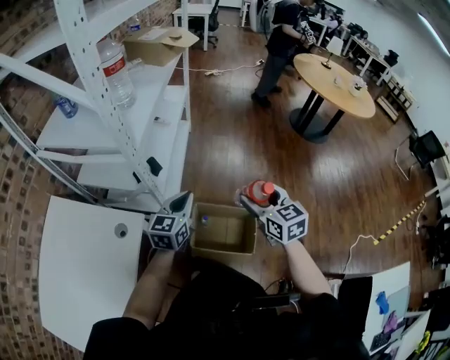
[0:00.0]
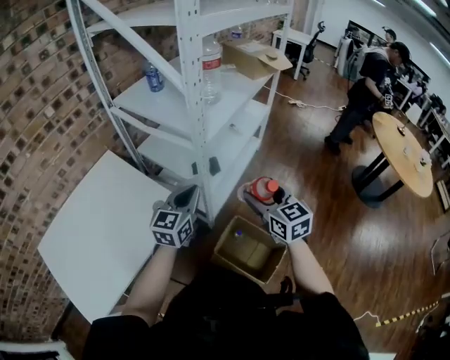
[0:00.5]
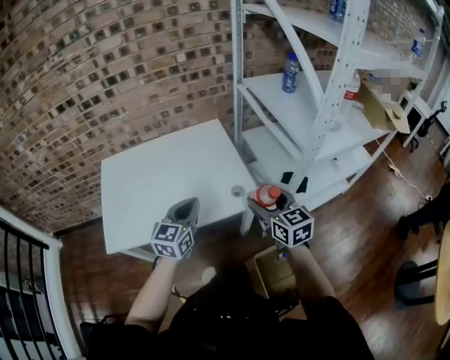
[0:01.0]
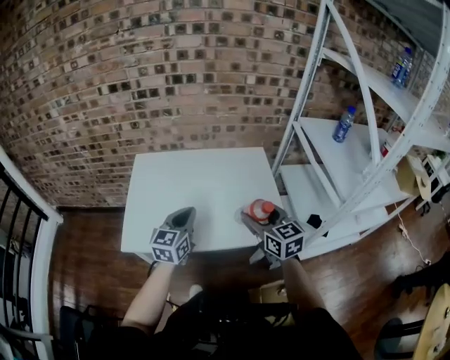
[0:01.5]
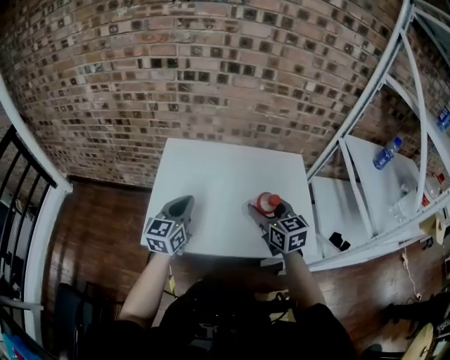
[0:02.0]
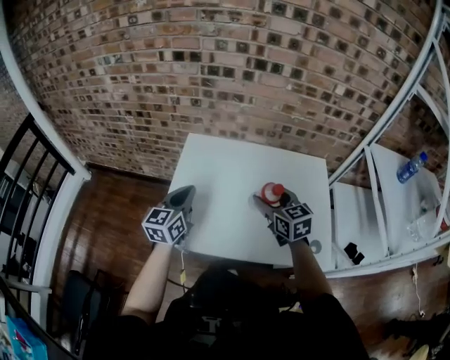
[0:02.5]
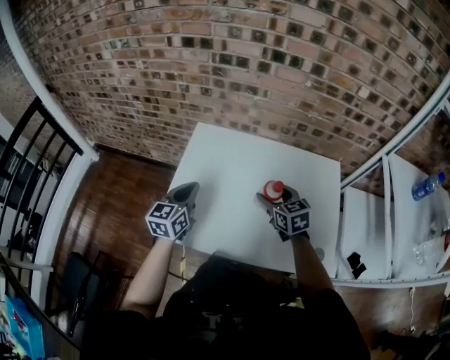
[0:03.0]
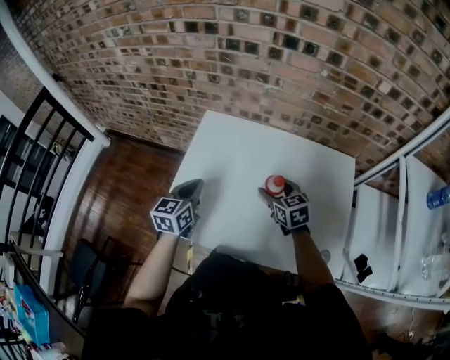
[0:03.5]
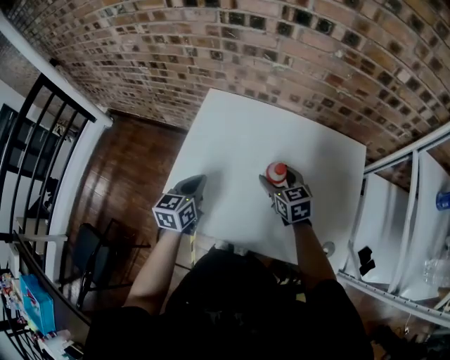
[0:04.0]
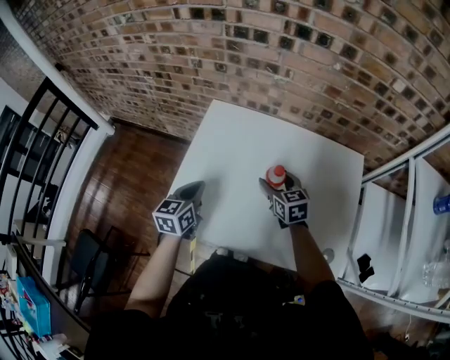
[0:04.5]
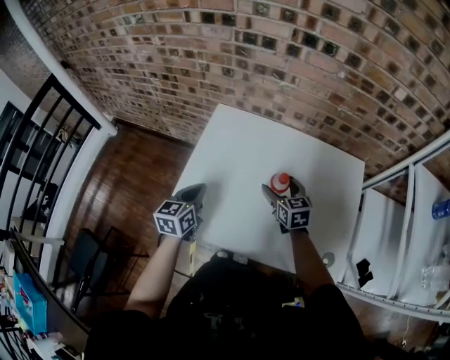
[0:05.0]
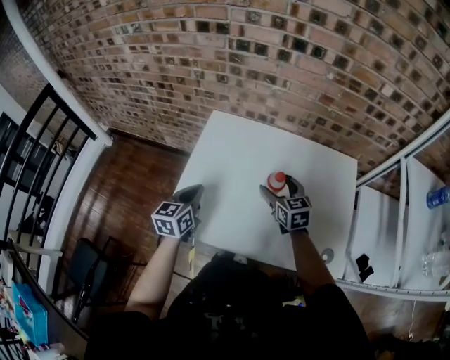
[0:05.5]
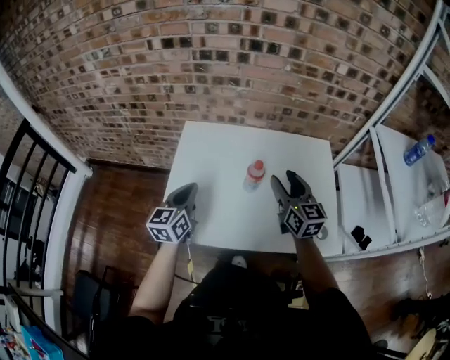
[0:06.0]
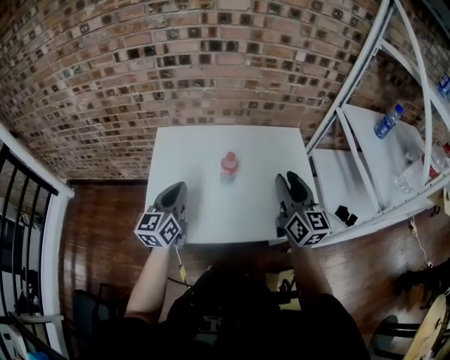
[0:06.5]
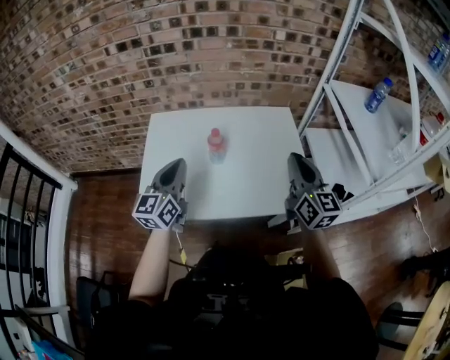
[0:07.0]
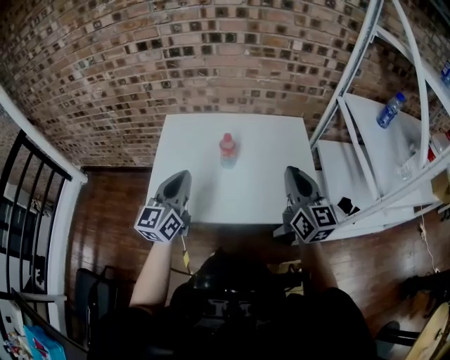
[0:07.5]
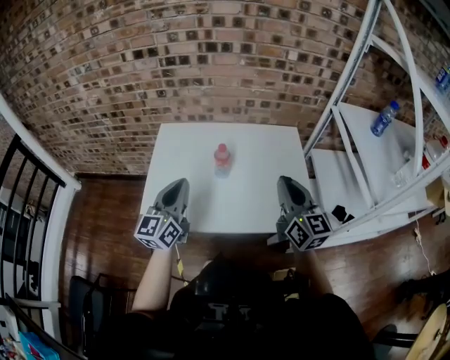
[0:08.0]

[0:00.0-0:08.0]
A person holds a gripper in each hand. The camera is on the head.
0:00.0 to 0:02.0: The two grippers travel together, some 70 cm. The left gripper swivels some 90 degrees. The right gripper turns by some 80 degrees.
0:02.0 to 0:04.0: The right gripper shifts roughly 20 cm downward and forward, and changes its angle by some 20 degrees; the left gripper moves downward and forward, approximately 15 cm, and turns by some 20 degrees.
0:04.0 to 0:06.0: The right gripper is displaced upward and backward by about 20 cm, and swivels approximately 30 degrees, while the left gripper moves upward, about 10 cm.
0:06.0 to 0:08.0: Both grippers move backward, to the right and upward, roughly 20 cm. The right gripper closes.

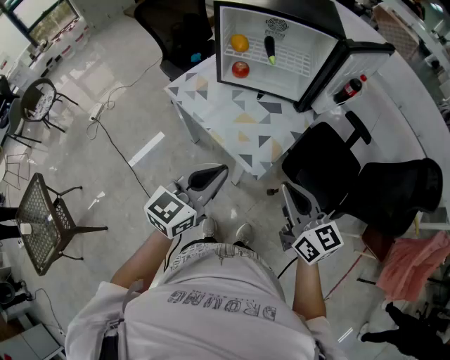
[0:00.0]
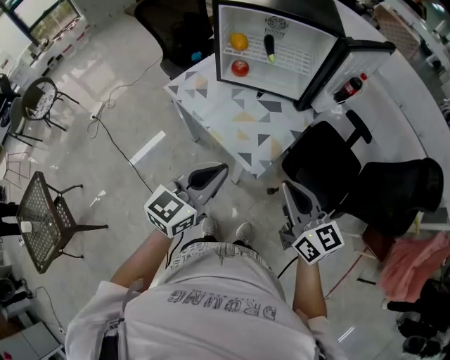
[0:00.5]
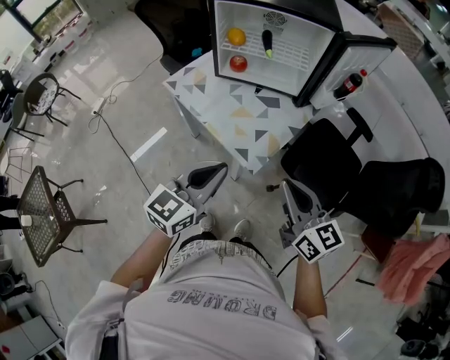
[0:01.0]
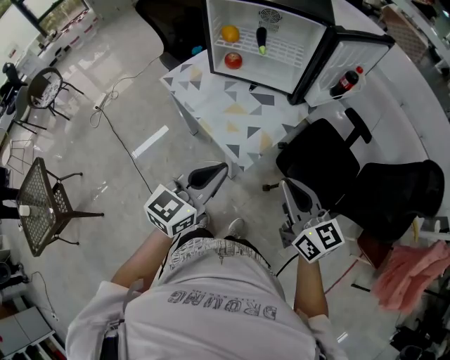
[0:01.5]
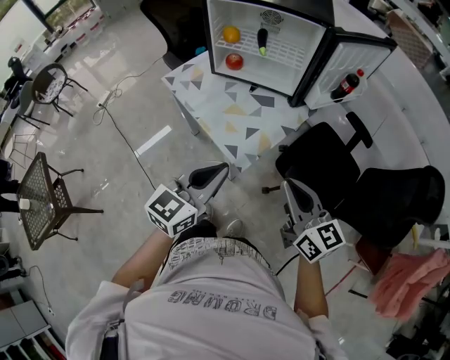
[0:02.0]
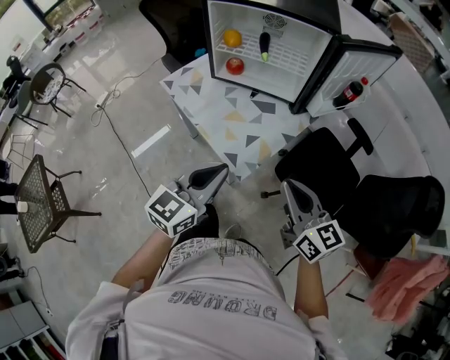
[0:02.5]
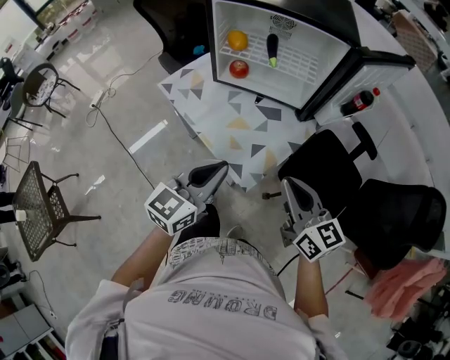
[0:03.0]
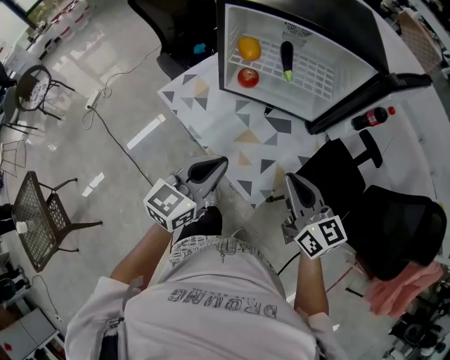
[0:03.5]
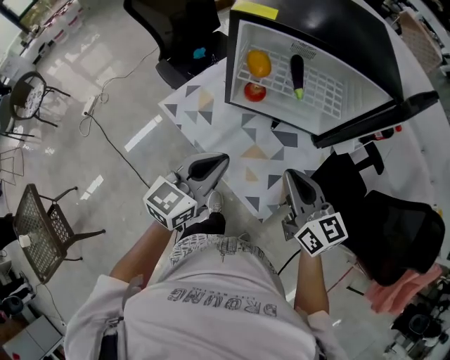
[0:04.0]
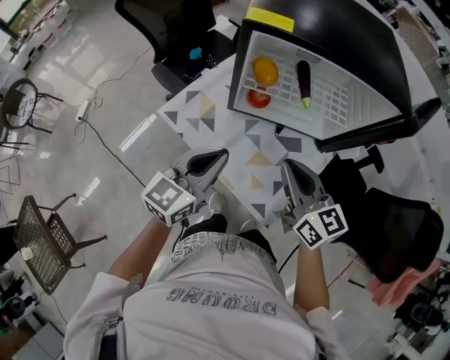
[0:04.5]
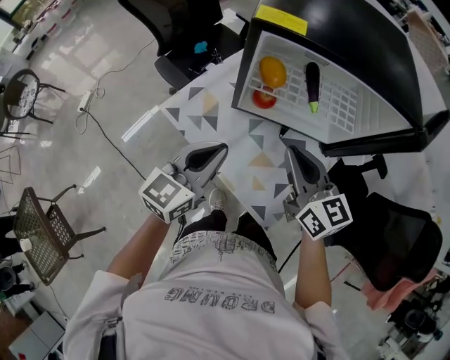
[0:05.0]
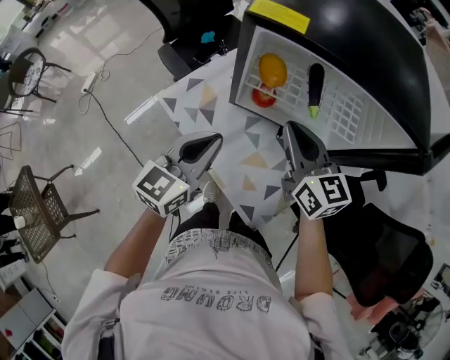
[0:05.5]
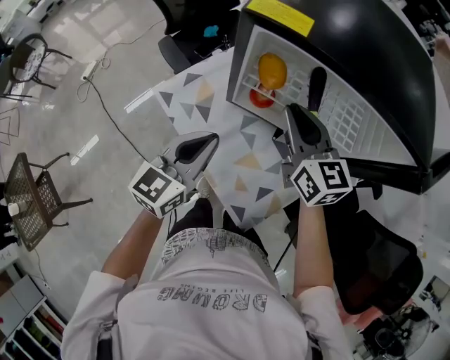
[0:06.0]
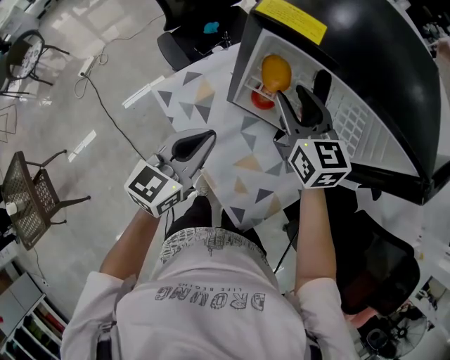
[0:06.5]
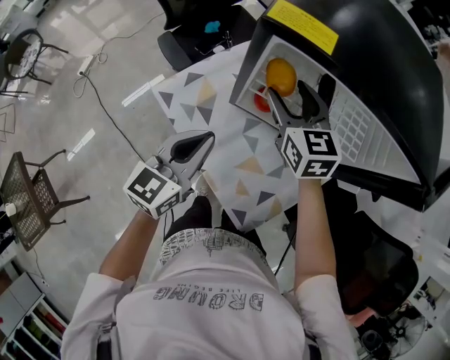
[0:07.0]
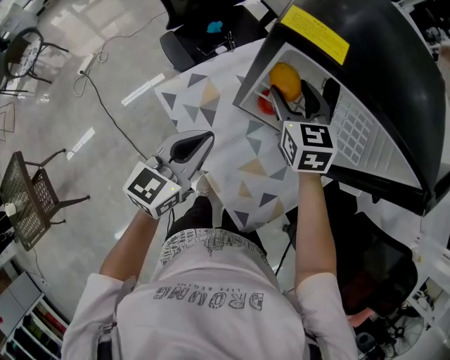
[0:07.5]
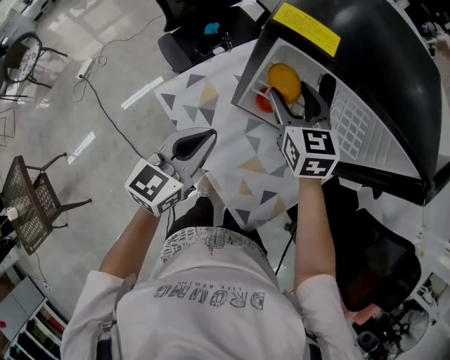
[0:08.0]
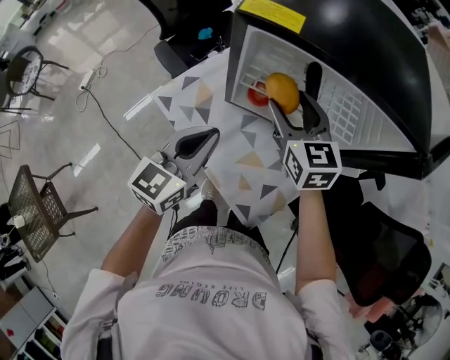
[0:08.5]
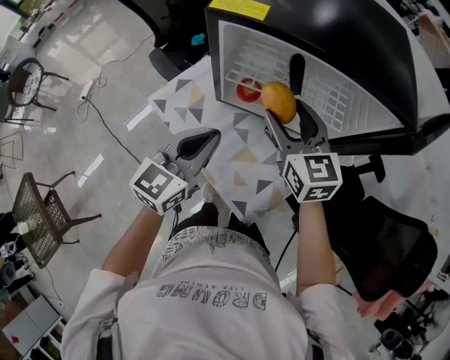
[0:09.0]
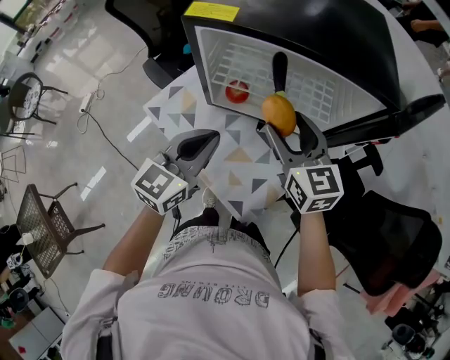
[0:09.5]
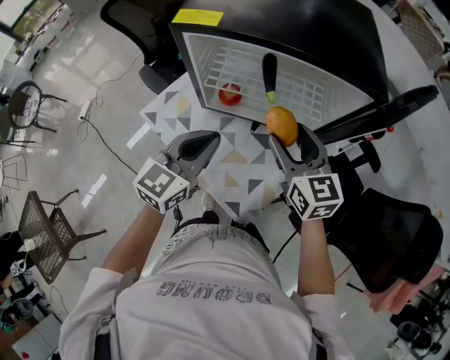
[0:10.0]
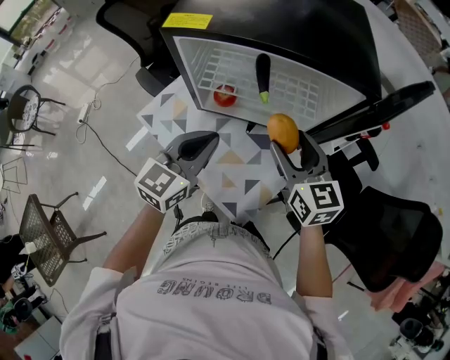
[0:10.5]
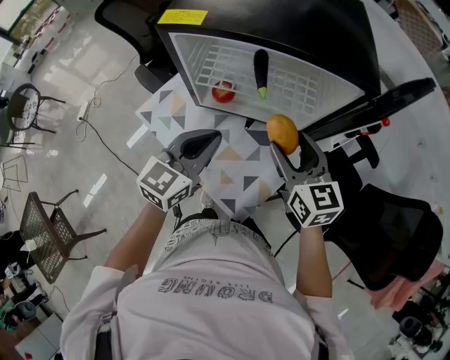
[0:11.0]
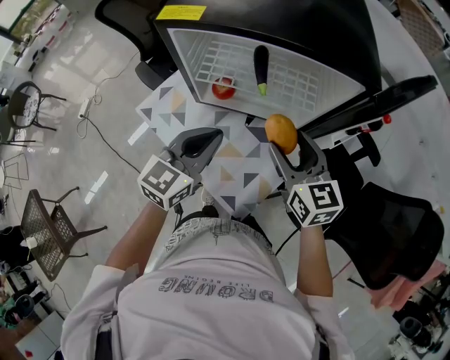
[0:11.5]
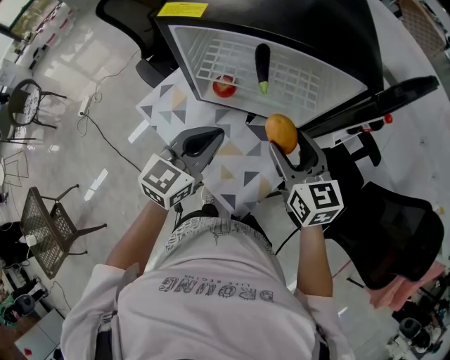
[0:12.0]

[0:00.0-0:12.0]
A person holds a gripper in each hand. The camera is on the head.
0:00.0 to 0:02.0: Both grippers travel together to the right, some 10 cm.
0:02.0 to 0:04.0: Both grippers move forward and to the left, some 30 cm.
0:04.0 to 0:06.0: The right gripper travels forward by roughly 20 cm. The left gripper shifts approximately 10 cm forward.
0:06.0 to 0:08.0: The right gripper heads forward, covering approximately 5 cm, and opens.
0:08.0 to 0:10.0: The left gripper shifts roughly 15 cm to the right and upward; the right gripper travels to the right and backward by some 20 cm.
0:10.0 to 0:12.0: The grippers stay close to where they were, moving slightly.

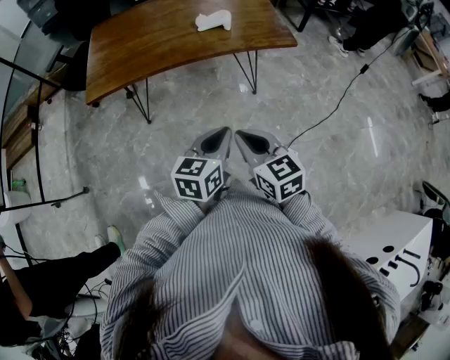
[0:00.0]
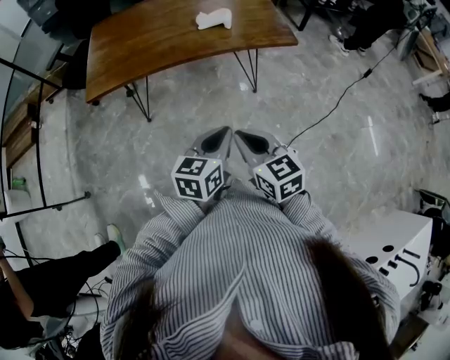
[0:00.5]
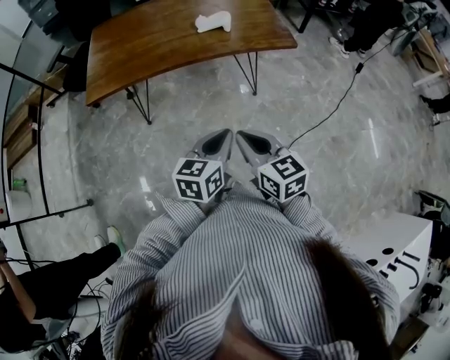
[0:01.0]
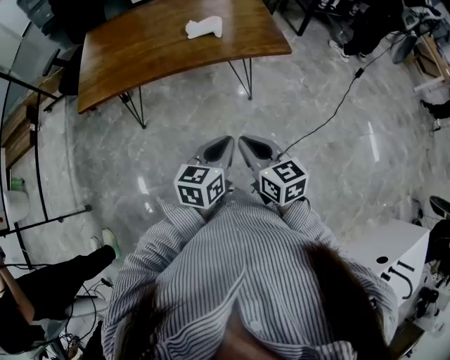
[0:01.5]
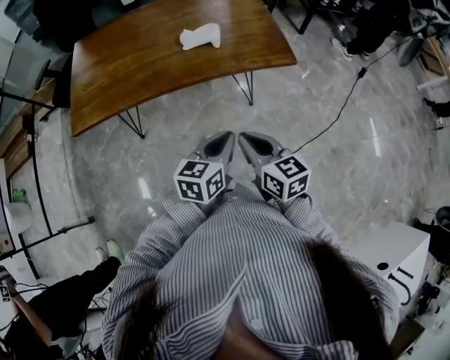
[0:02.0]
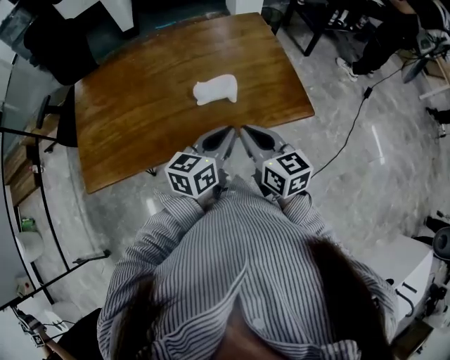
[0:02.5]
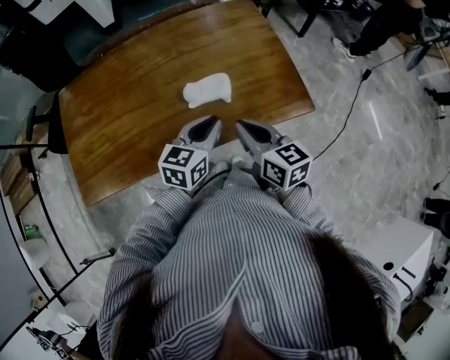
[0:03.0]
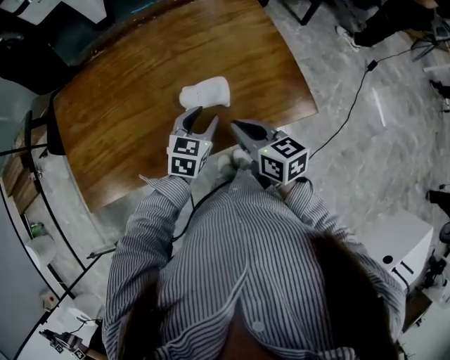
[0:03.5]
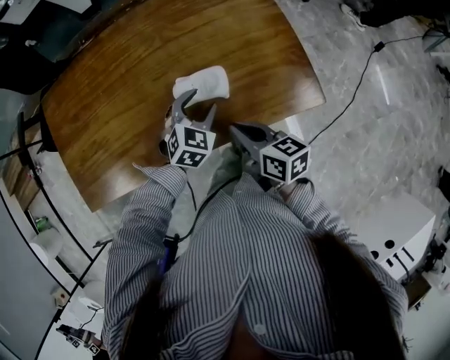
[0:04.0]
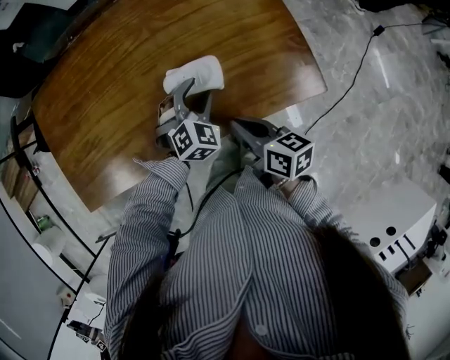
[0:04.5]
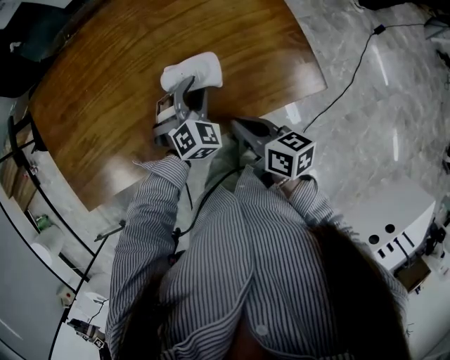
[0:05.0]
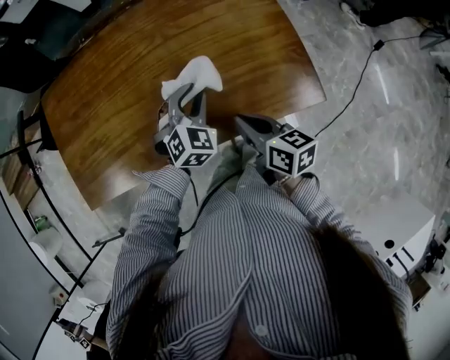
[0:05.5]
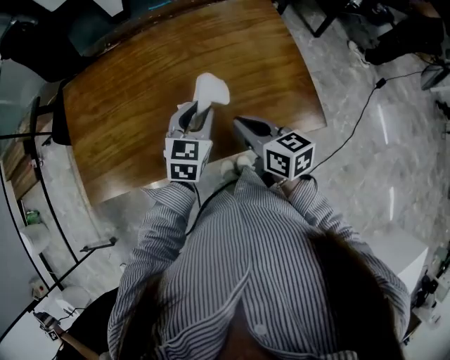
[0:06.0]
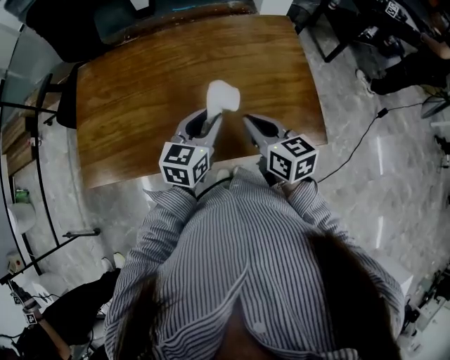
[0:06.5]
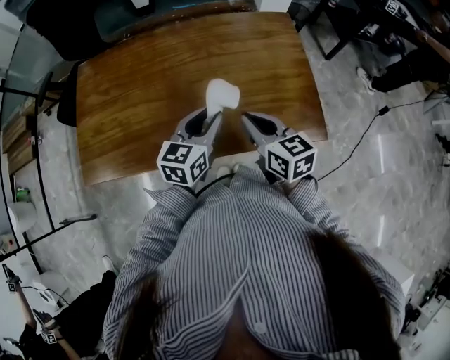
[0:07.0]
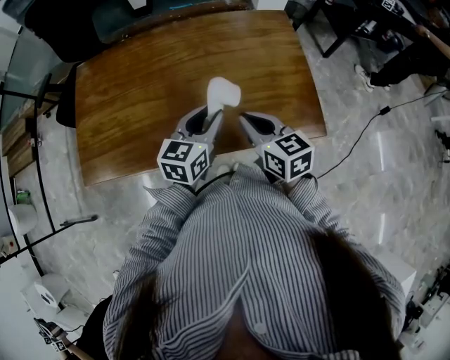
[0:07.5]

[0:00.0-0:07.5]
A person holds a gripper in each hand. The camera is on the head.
0:00.0 to 0:02.0: The two grippers go roughly 15 cm forward and to the right.
0:02.0 to 0:04.0: Both grippers travel together forward, approximately 35 cm. The left gripper twists approximately 40 degrees clockwise, seen from behind, and opens up. The right gripper rotates about 20 degrees.
0:04.0 to 0:05.5: The left gripper closes.
0:05.5 to 0:07.5: The left gripper shifts about 10 cm upward and backward, and rolls counterclockwise, seen from behind, by some 50 degrees; the right gripper shifts approximately 5 cm upward, and turns by roughly 30 degrees.
